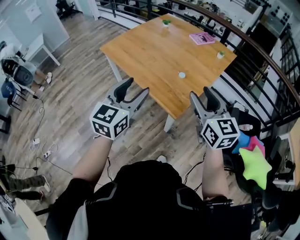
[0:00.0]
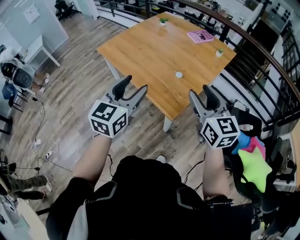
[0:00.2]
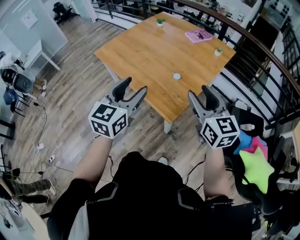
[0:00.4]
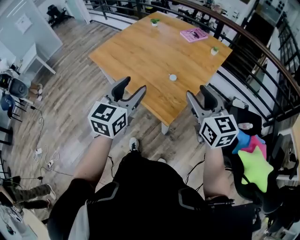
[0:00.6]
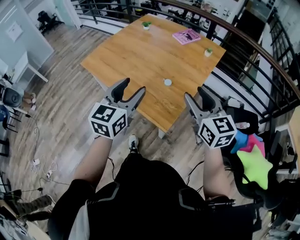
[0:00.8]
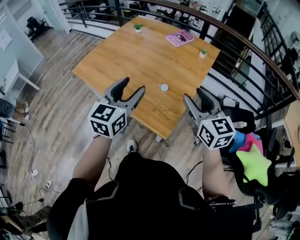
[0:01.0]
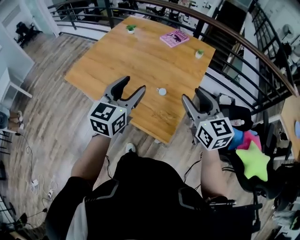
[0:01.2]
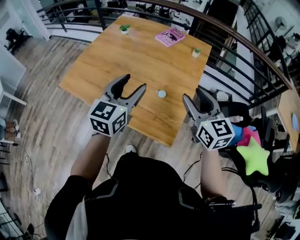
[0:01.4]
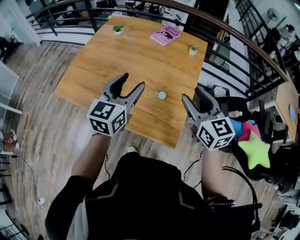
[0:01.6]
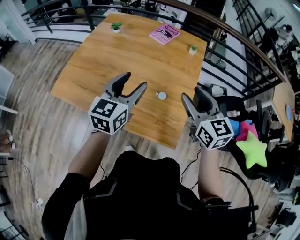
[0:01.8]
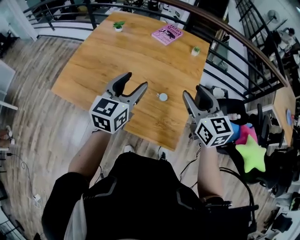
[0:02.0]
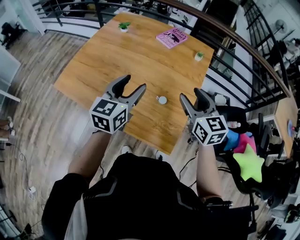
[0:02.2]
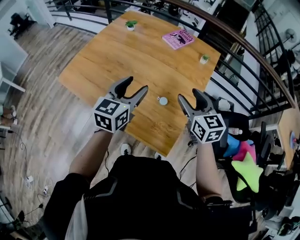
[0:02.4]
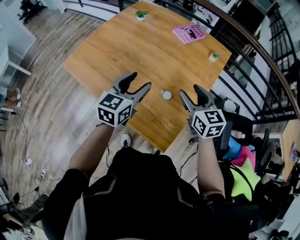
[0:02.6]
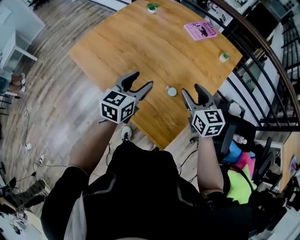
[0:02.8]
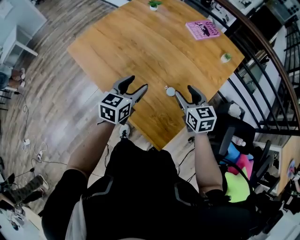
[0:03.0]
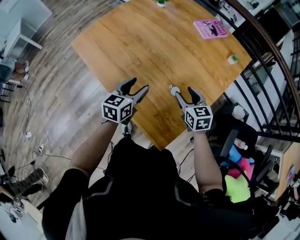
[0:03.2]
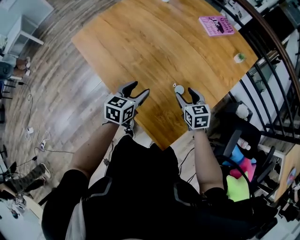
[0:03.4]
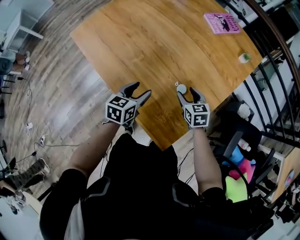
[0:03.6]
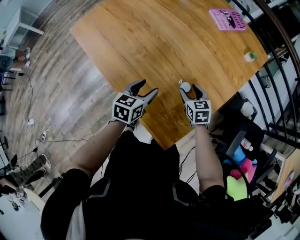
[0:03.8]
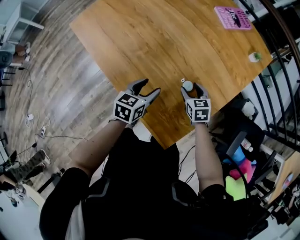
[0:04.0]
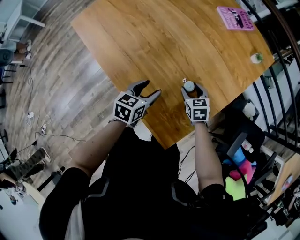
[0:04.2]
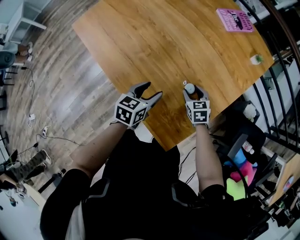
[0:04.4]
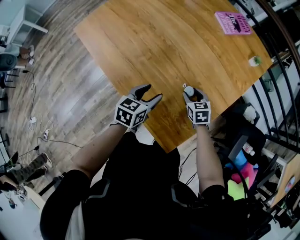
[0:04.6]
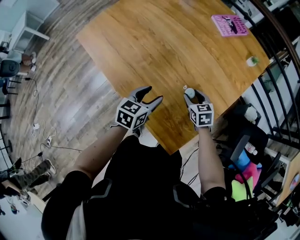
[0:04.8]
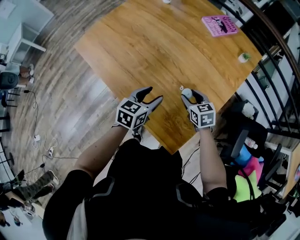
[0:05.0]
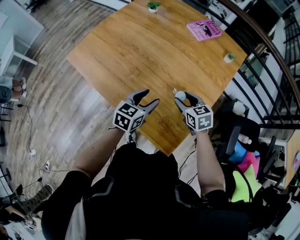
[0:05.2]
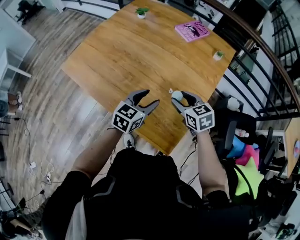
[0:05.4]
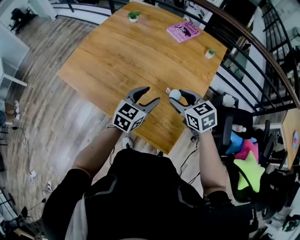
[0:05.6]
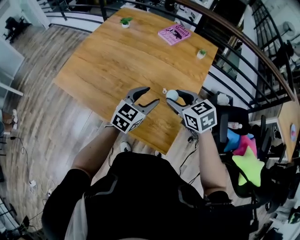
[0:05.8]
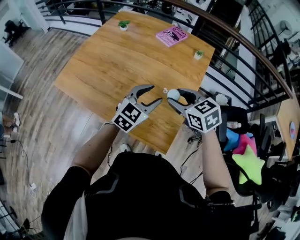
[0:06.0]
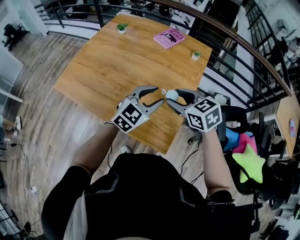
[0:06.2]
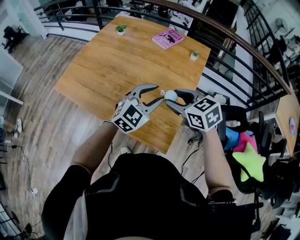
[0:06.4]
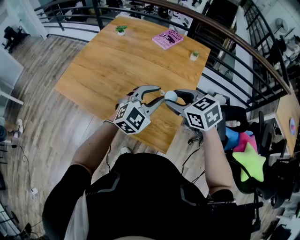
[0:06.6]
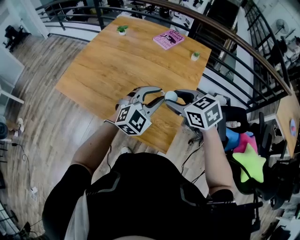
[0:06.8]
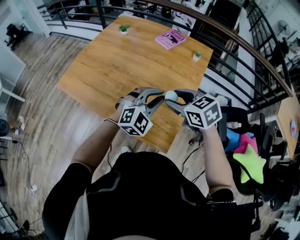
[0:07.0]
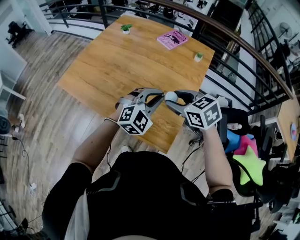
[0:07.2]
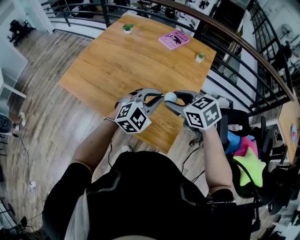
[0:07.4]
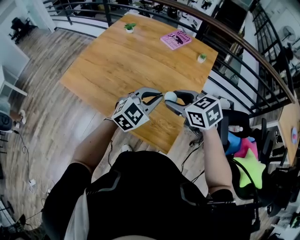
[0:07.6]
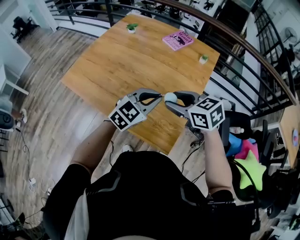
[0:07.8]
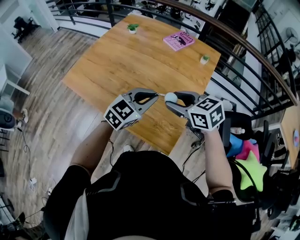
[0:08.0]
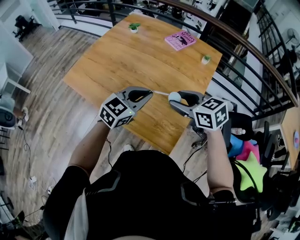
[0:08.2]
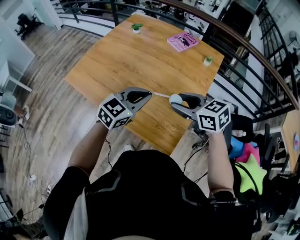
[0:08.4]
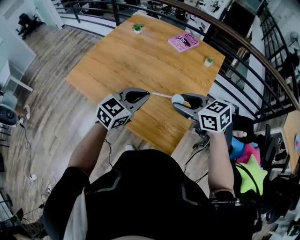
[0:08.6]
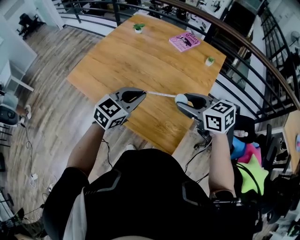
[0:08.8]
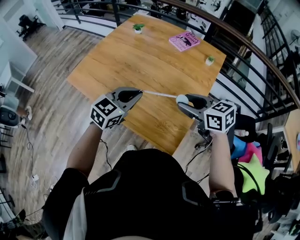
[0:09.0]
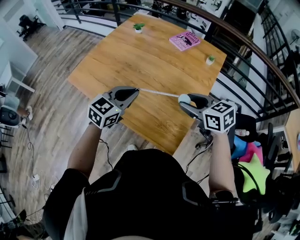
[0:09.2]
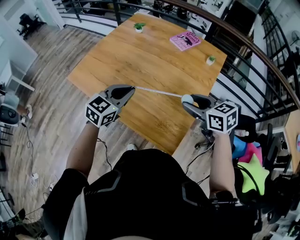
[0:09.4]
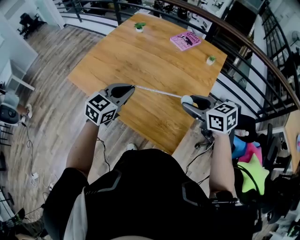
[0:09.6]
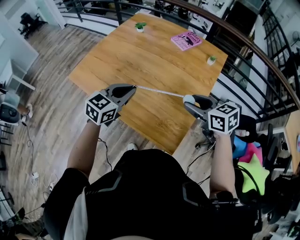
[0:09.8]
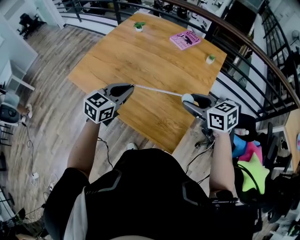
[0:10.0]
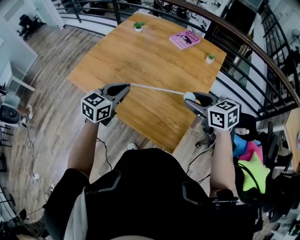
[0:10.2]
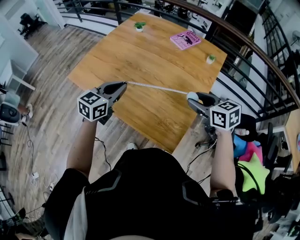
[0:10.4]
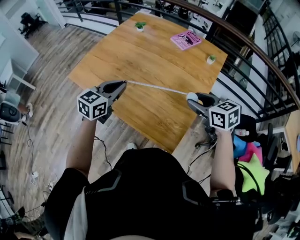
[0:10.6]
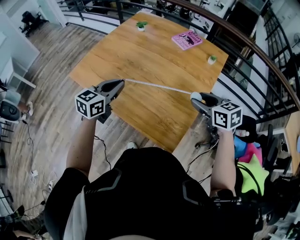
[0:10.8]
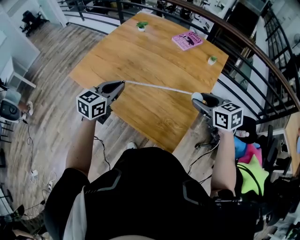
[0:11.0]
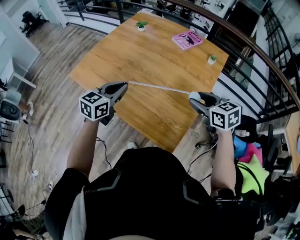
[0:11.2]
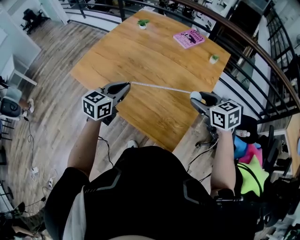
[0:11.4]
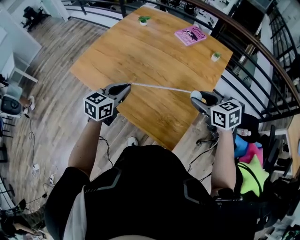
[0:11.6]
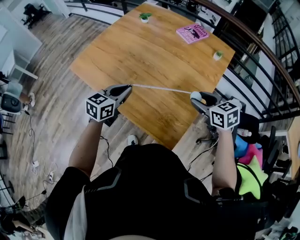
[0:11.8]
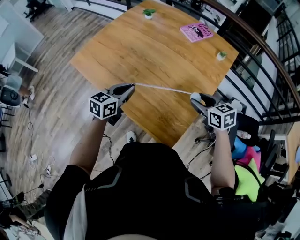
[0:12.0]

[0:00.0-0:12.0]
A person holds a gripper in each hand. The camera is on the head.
0:00.0 to 0:01.6: Both grippers travel together forward, roughly 25 cm. The left gripper changes its angle by some 20 degrees.
0:01.6 to 0:03.0: The left gripper moves downward, approximately 15 cm, and rotates some 20 degrees. Meanwhile the right gripper travels downward and forward by some 20 cm, and swivels roughly 30 degrees.
0:03.0 to 0:04.4: Both grippers travel together downward, about 15 cm. The right gripper turns by about 20 degrees.
0:04.4 to 0:06.0: The left gripper heads upward and to the right, covering about 20 cm, and twists approximately 40 degrees clockwise, seen from behind, while the right gripper heads upward, covering approximately 30 cm.
0:06.0 to 0:07.6: The left gripper closes up.
0:07.6 to 0:09.0: The left gripper is displaced to the left by approximately 10 cm, and changes its angle by approximately 20 degrees.
0:09.0 to 0:10.4: The left gripper travels to the left by roughly 5 cm.
0:10.4 to 0:12.0: The grippers both shift downward by approximately 10 cm.

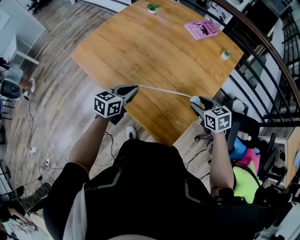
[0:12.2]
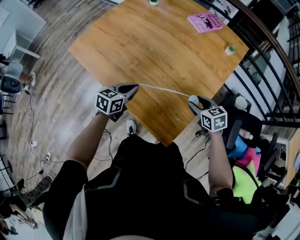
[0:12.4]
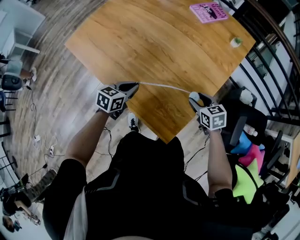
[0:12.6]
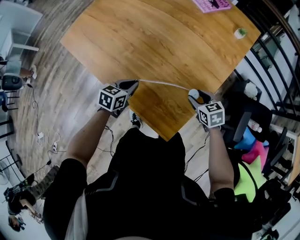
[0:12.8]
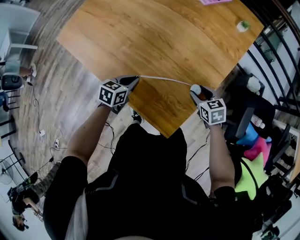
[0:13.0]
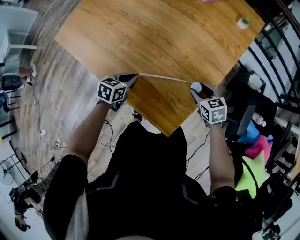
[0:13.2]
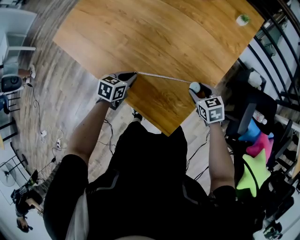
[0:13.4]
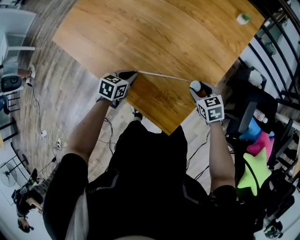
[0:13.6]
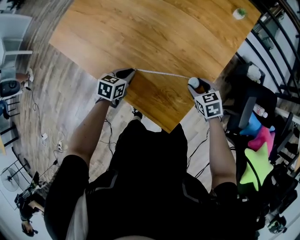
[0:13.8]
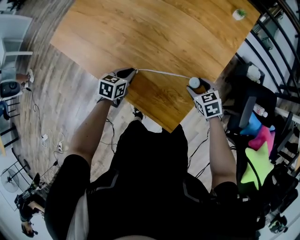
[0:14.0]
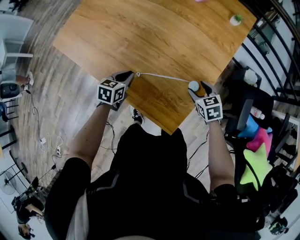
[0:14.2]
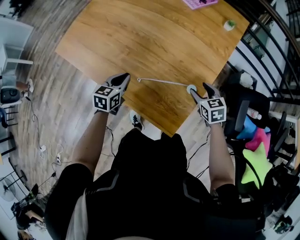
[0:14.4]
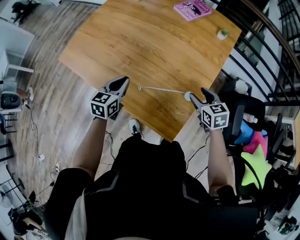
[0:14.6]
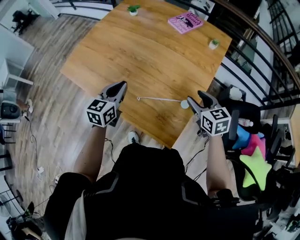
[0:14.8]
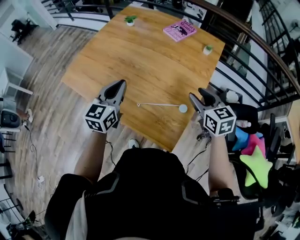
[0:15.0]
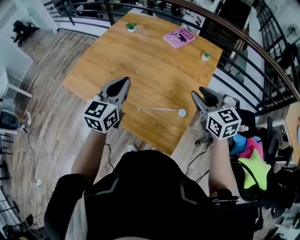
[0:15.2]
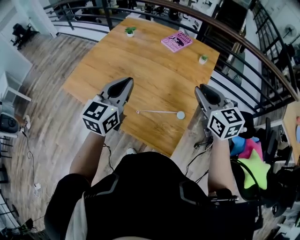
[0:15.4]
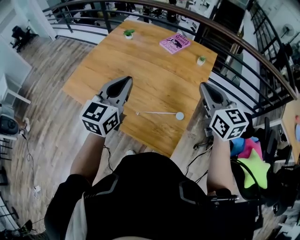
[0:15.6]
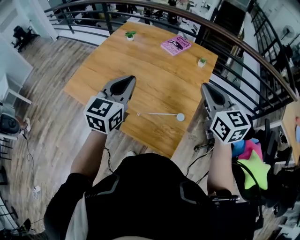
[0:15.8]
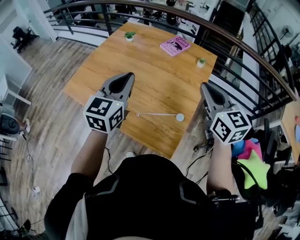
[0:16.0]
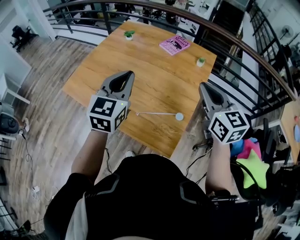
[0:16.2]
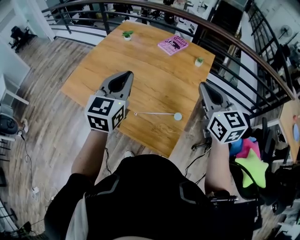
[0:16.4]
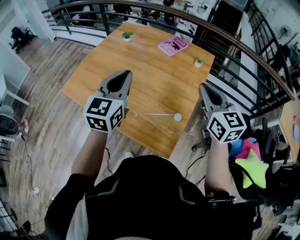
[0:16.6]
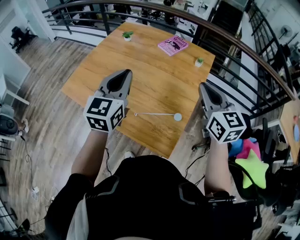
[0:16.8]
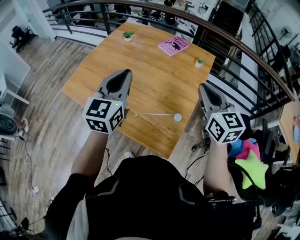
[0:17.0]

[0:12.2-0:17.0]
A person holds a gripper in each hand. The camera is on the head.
0:12.2 to 0:13.8: The two grippers go approximately 15 cm downward. The left gripper swivels about 20 degrees.
0:13.8 to 0:15.4: Both grippers travel together upward, roughly 40 cm. The right gripper angles its fingers upward, by approximately 40 degrees, and closes. The left gripper points its fingers about 40 degrees further upward.

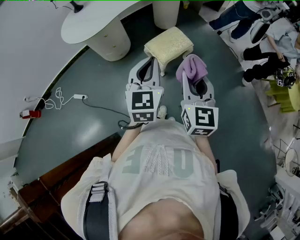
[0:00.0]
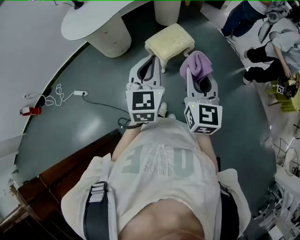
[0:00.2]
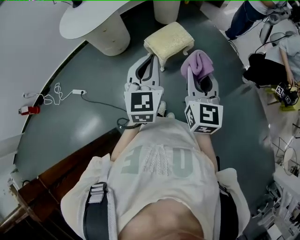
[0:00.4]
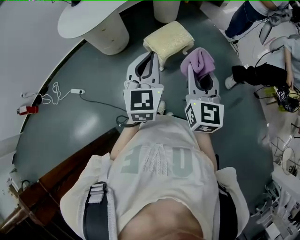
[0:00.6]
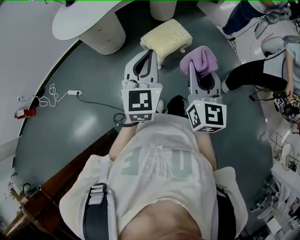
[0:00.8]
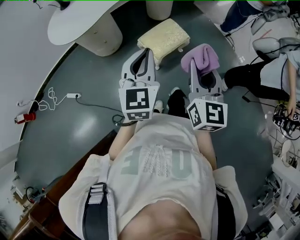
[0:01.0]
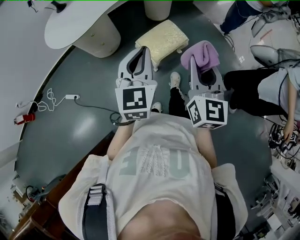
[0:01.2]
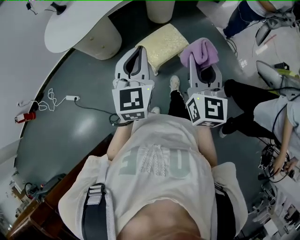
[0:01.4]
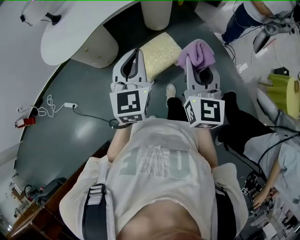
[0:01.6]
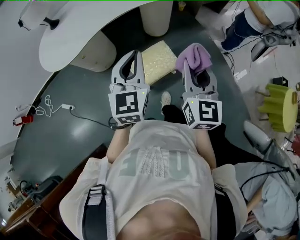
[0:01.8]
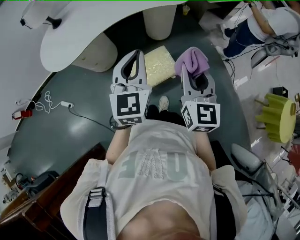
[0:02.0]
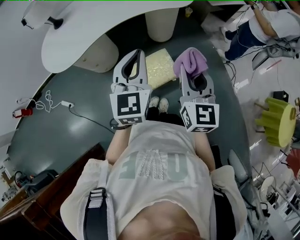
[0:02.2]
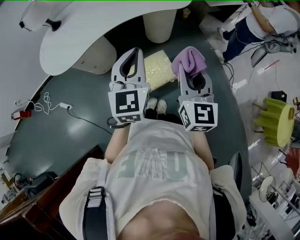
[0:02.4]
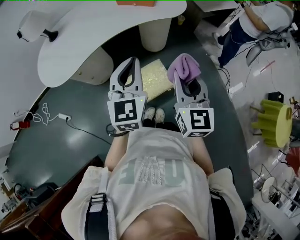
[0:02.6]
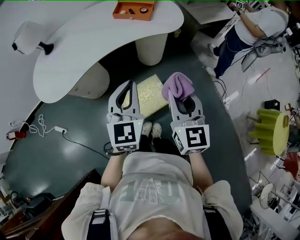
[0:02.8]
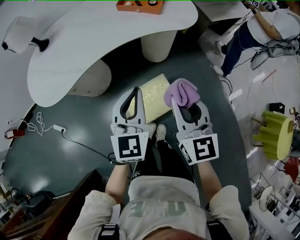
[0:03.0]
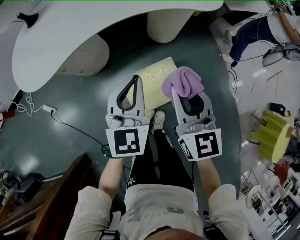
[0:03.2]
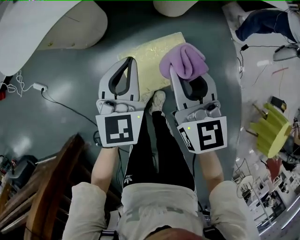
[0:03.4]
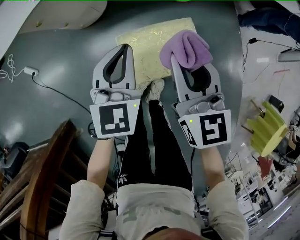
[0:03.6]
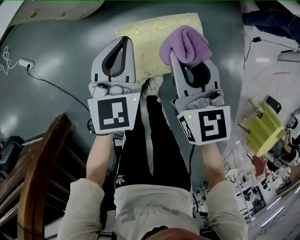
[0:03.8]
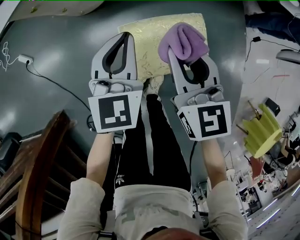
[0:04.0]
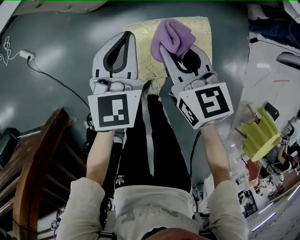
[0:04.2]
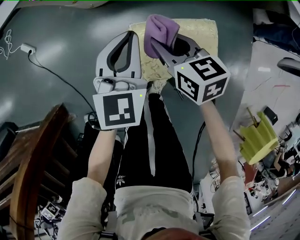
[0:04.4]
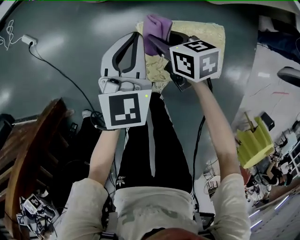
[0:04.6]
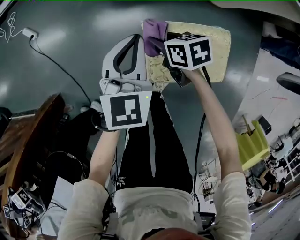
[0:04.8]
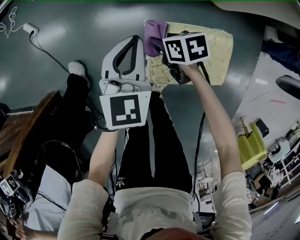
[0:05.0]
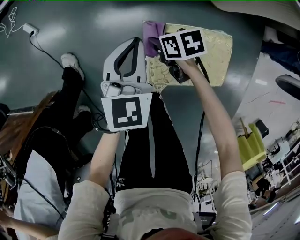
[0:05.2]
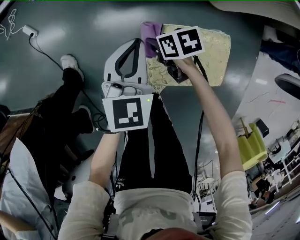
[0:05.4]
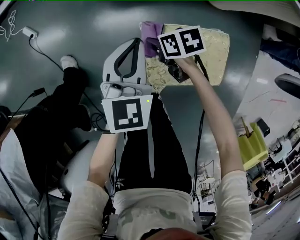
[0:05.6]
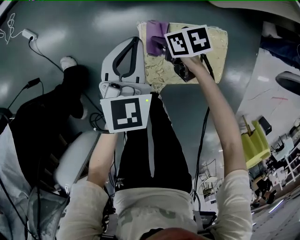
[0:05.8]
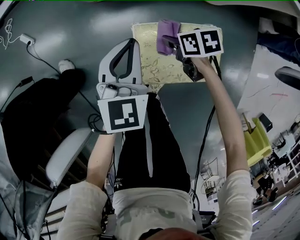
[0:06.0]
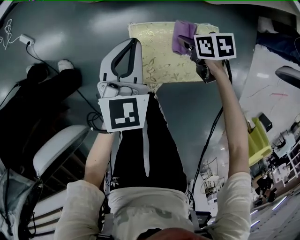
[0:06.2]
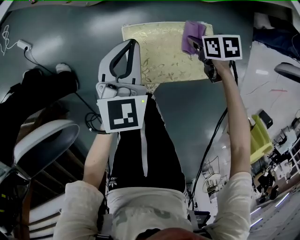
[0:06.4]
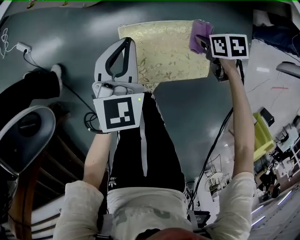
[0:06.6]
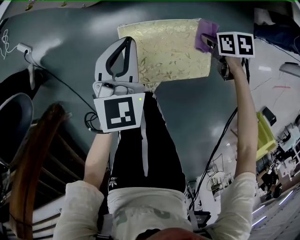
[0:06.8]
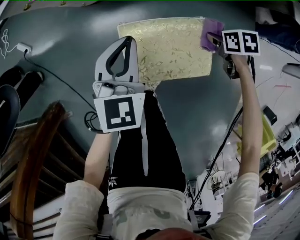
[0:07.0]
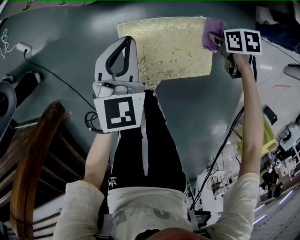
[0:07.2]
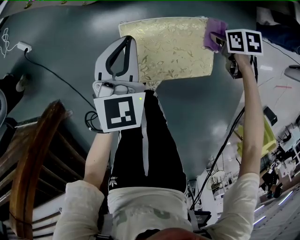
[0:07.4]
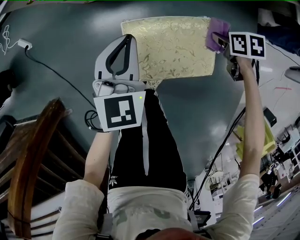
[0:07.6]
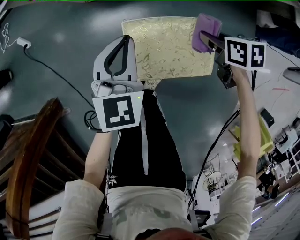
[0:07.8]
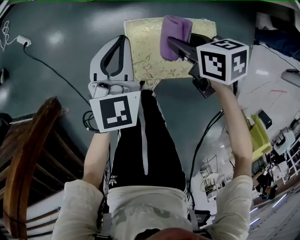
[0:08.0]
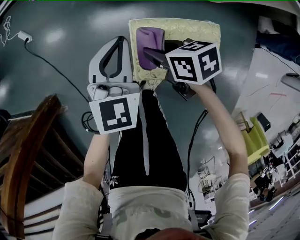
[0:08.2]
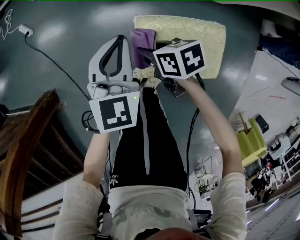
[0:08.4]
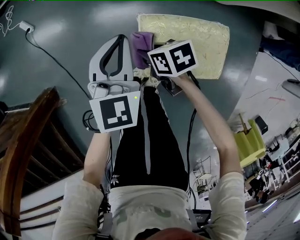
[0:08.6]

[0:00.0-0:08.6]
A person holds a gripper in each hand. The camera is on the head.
0:00.0 to 0:01.4: The two grippers go roughly 15 cm forward.
0:01.4 to 0:02.8: The left gripper shifts some 25 cm forward and to the right, while the right gripper travels forward by approximately 25 cm.
0:02.8 to 0:04.4: The grippers both shift downward by about 40 cm. The left gripper turns by some 20 degrees. Meanwhile the right gripper rotates approximately 60 degrees.
0:04.4 to 0:05.8: The right gripper shifts about 15 cm downward, and changes its angle by about 30 degrees.
0:05.8 to 0:07.2: The left gripper heads to the right, covering approximately 5 cm. The right gripper travels to the right and backward by roughly 30 cm, and turns by some 20 degrees.
0:07.2 to 0:08.6: The right gripper moves to the left, approximately 30 cm, and turns by approximately 30 degrees. Meanwhile the left gripper shifts approximately 10 cm to the left.
